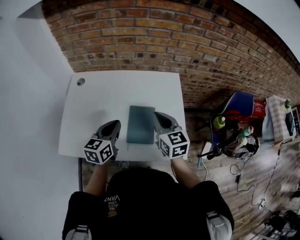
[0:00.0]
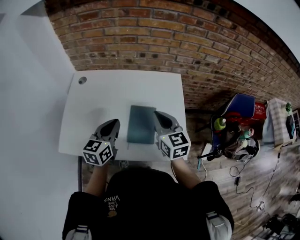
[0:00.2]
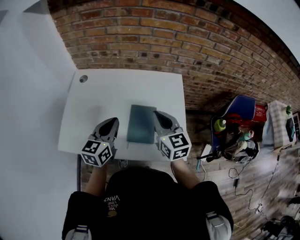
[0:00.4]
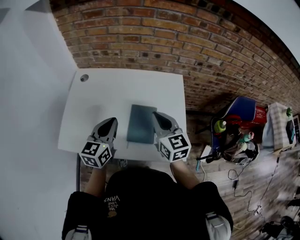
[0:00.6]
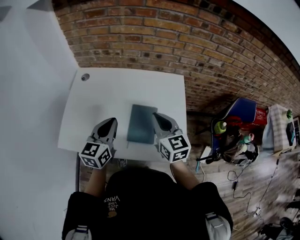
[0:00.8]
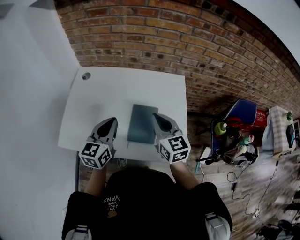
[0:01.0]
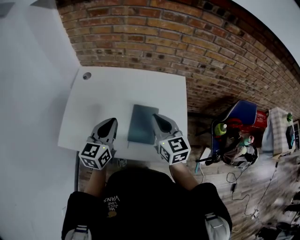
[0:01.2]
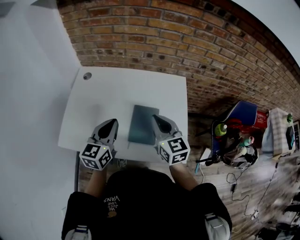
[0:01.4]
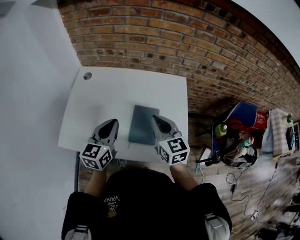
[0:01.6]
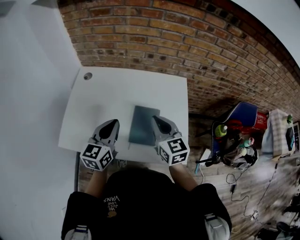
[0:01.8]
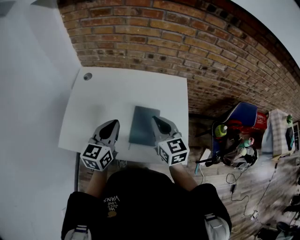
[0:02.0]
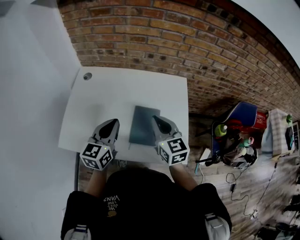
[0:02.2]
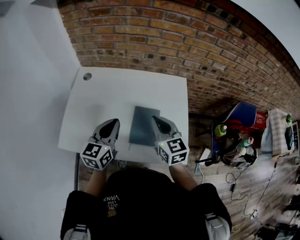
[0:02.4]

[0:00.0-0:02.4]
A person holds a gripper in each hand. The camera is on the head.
0:00.0 to 0:01.2: The left gripper shifts by some 5 cm.
0:01.2 to 0:02.4: The grippers stay close to where they were, moving slightly.

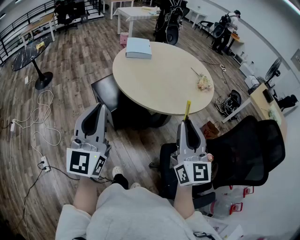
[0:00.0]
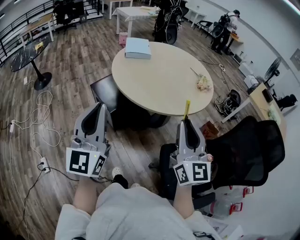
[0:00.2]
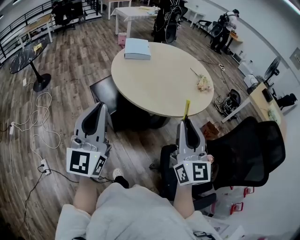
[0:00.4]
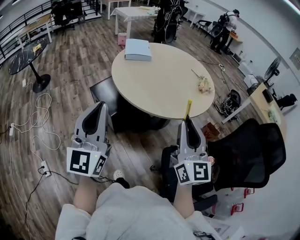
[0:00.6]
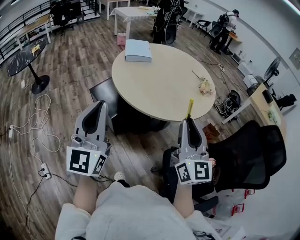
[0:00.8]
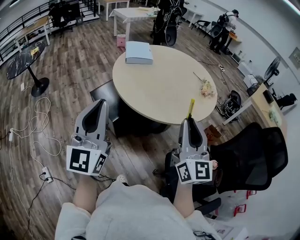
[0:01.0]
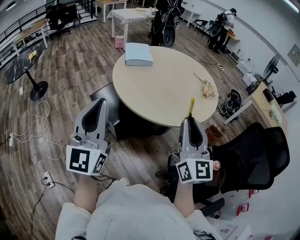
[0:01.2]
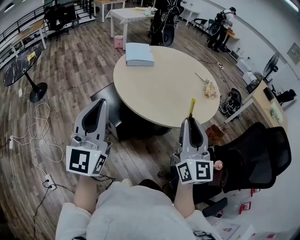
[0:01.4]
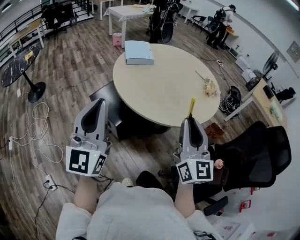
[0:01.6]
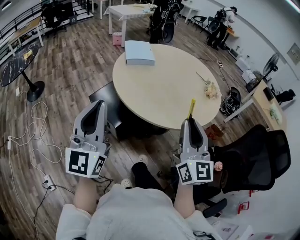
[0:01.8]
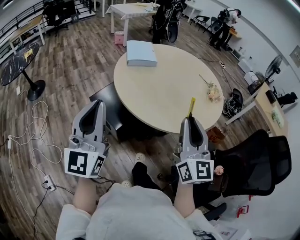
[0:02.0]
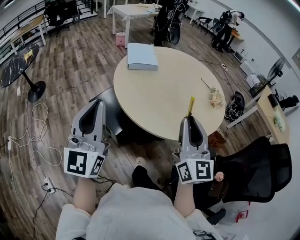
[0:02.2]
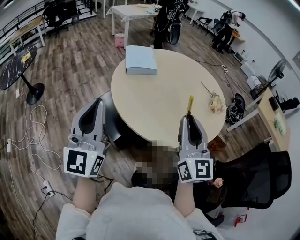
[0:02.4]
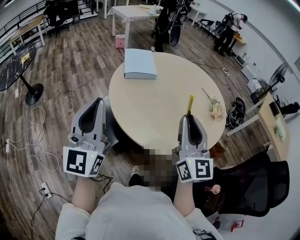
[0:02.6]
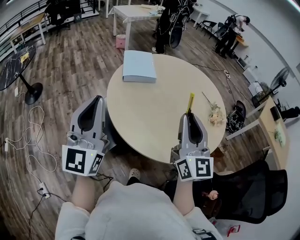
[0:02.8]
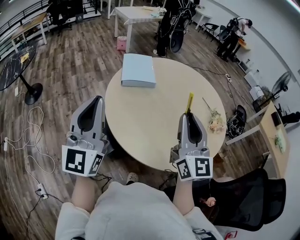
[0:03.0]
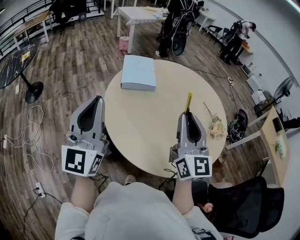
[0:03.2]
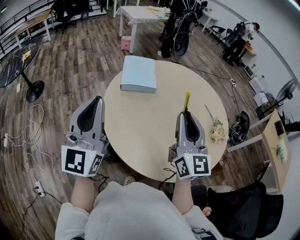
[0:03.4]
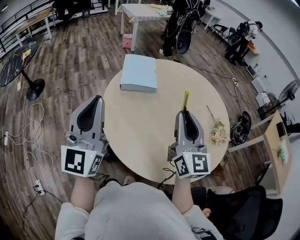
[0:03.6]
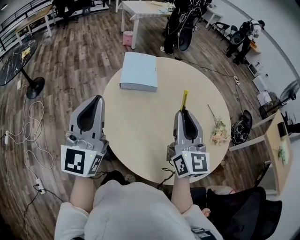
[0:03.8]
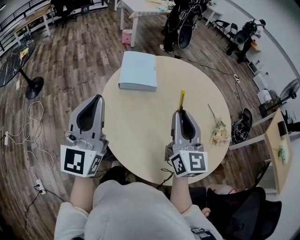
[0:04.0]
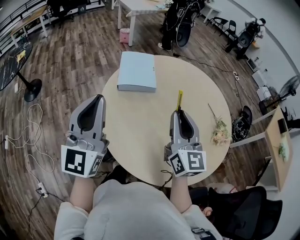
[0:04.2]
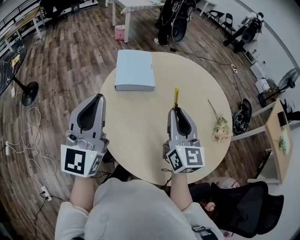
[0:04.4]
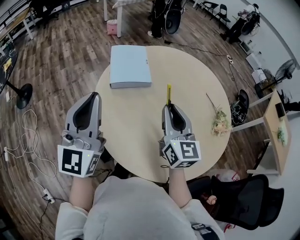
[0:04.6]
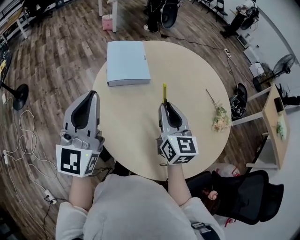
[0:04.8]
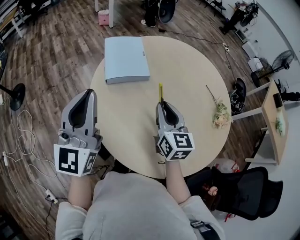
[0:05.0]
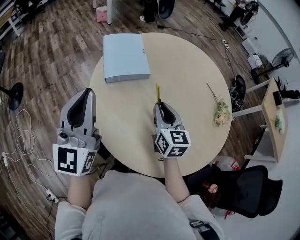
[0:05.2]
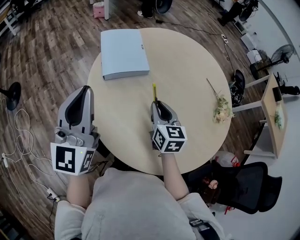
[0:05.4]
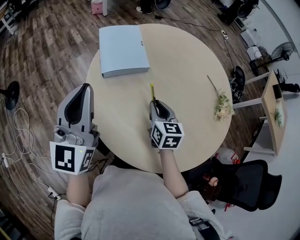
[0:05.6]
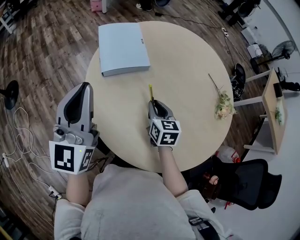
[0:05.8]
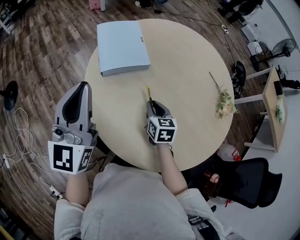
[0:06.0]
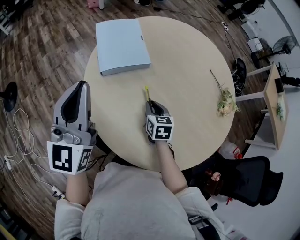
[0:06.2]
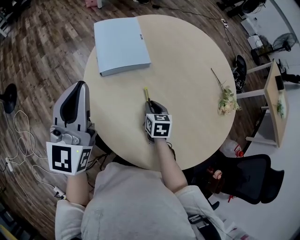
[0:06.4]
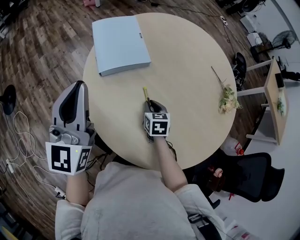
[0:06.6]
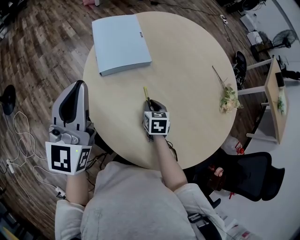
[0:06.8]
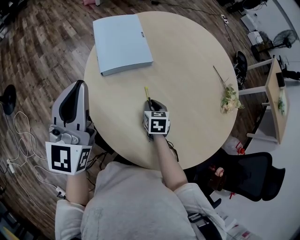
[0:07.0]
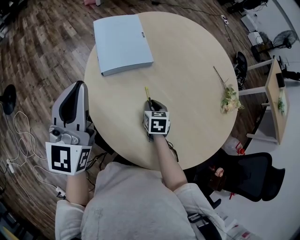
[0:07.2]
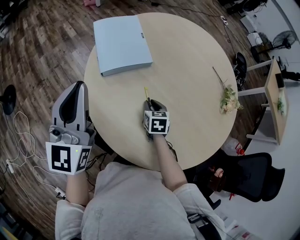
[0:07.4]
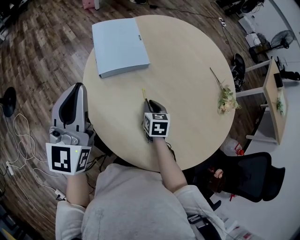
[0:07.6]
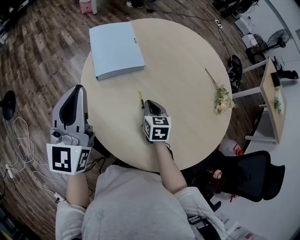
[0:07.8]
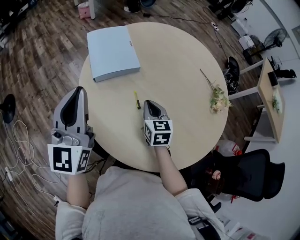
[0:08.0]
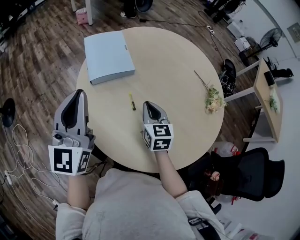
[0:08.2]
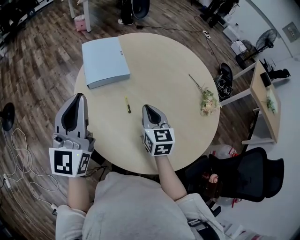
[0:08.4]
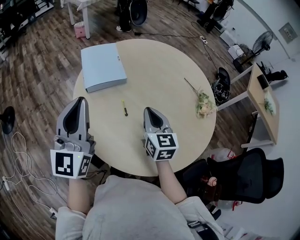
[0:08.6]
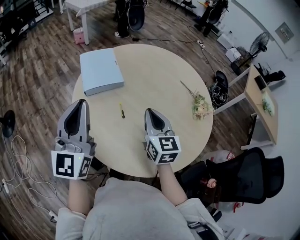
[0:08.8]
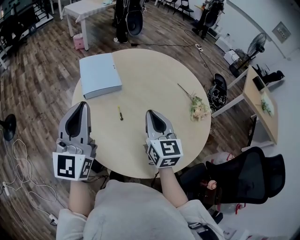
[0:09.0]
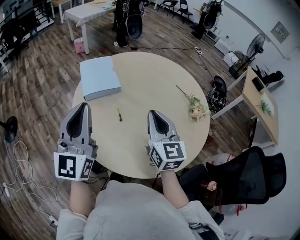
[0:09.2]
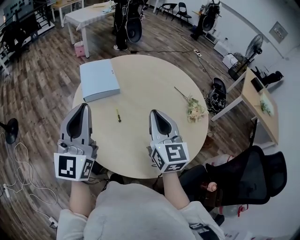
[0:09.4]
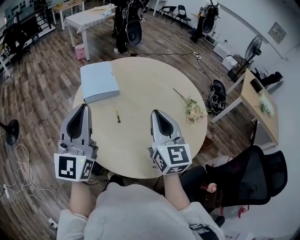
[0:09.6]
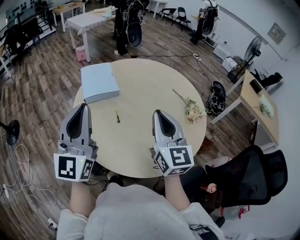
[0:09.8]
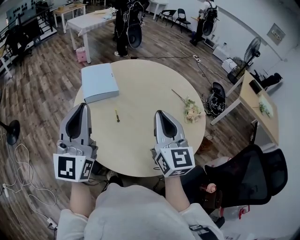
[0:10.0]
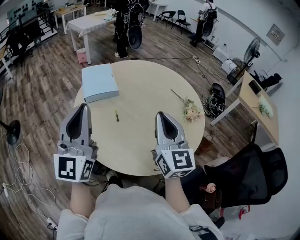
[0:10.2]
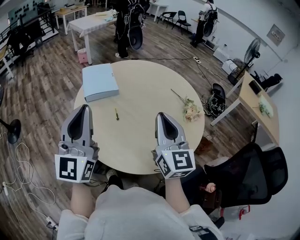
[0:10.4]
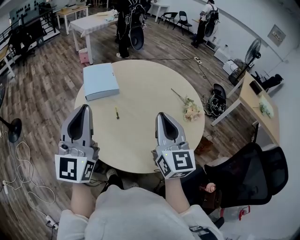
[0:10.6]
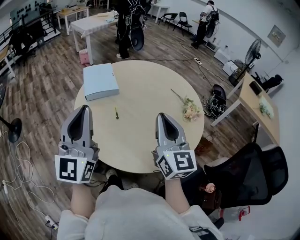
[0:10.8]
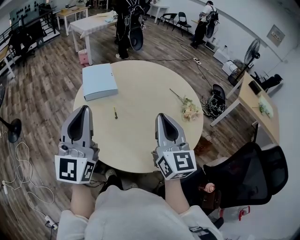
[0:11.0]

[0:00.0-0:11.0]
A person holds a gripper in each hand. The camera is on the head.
0:00.0 to 0:01.6: Both grippers move forward and to the left, roughly 15 cm.
0:01.6 to 0:03.2: Both grippers travel together forward, about 30 cm.
0:03.2 to 0:04.8: The left gripper is displaced forward by approximately 15 cm; the right gripper travels forward and downward by approximately 20 cm, and changes its angle by roughly 20 degrees.
0:04.8 to 0:06.2: The right gripper travels downward by about 25 cm, and tips its fingers downward by about 30 degrees, while the left gripper moves forward and downward, about 10 cm.
0:06.2 to 0:07.8: The grippers move only a little.
0:07.8 to 0:09.4: The right gripper goes about 35 cm upward, backward and to the right, and tips its fingers upward by some 40 degrees. The left gripper moves backward, to the right and upward, approximately 20 cm.
0:09.4 to 0:11.0: The left gripper heads backward, covering roughly 10 cm. Meanwhile the right gripper moves backward and to the right, approximately 10 cm.

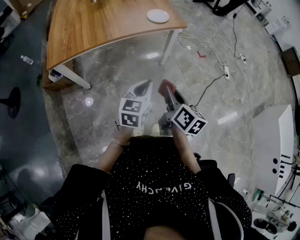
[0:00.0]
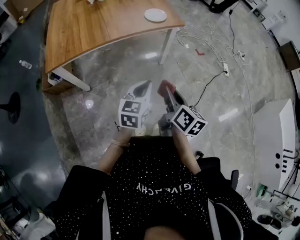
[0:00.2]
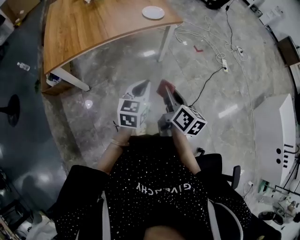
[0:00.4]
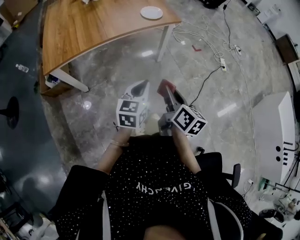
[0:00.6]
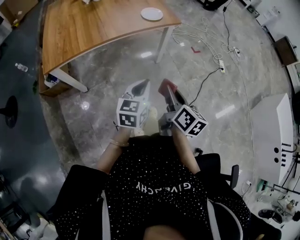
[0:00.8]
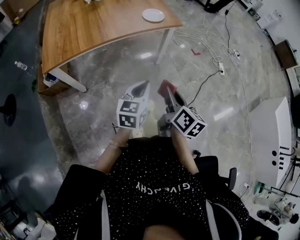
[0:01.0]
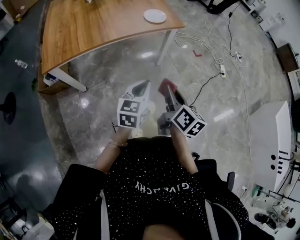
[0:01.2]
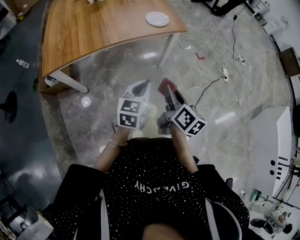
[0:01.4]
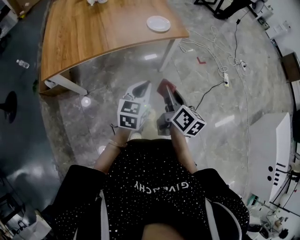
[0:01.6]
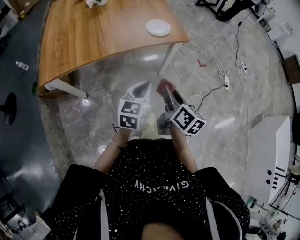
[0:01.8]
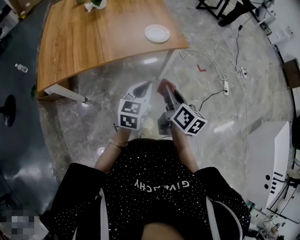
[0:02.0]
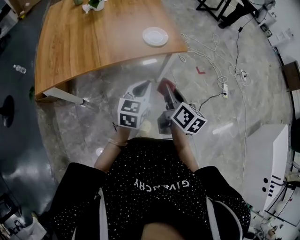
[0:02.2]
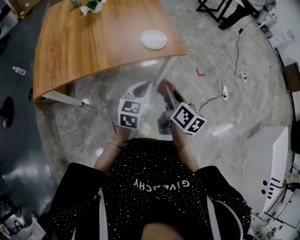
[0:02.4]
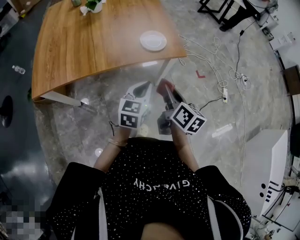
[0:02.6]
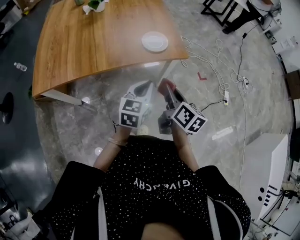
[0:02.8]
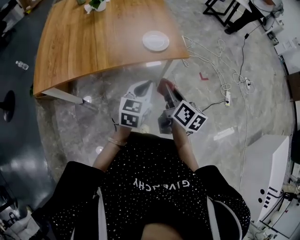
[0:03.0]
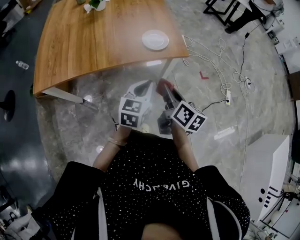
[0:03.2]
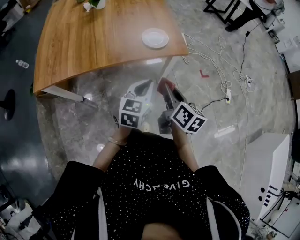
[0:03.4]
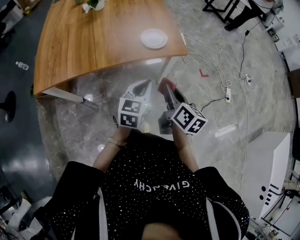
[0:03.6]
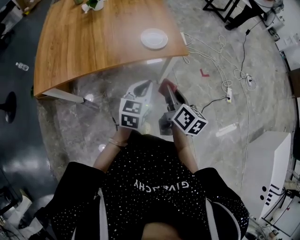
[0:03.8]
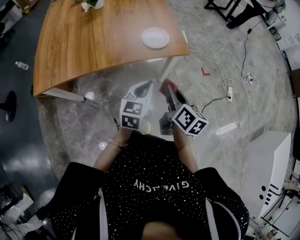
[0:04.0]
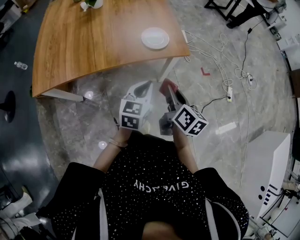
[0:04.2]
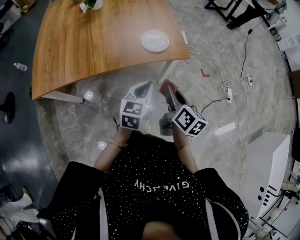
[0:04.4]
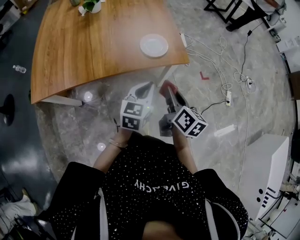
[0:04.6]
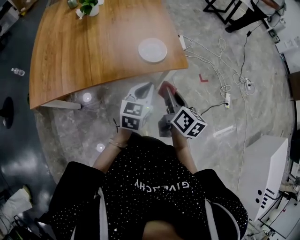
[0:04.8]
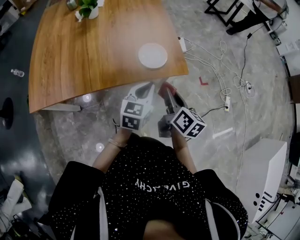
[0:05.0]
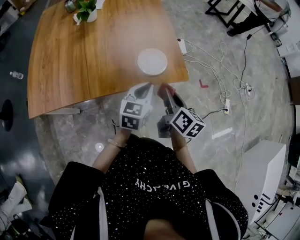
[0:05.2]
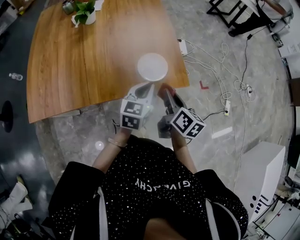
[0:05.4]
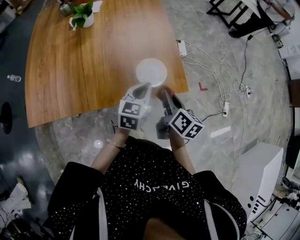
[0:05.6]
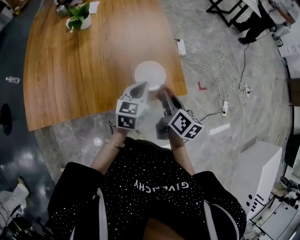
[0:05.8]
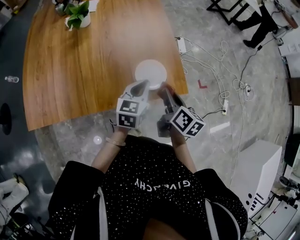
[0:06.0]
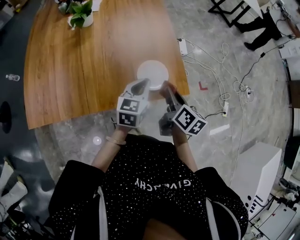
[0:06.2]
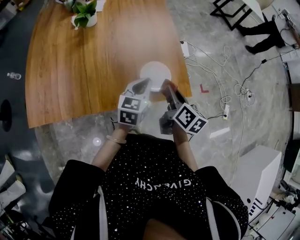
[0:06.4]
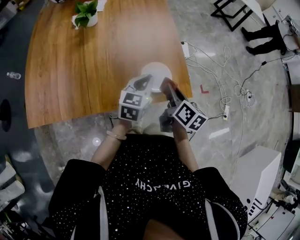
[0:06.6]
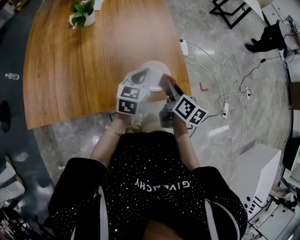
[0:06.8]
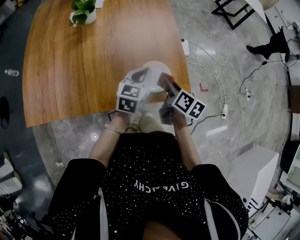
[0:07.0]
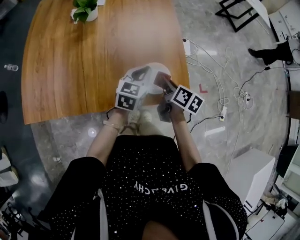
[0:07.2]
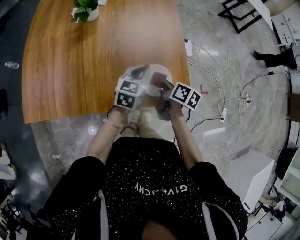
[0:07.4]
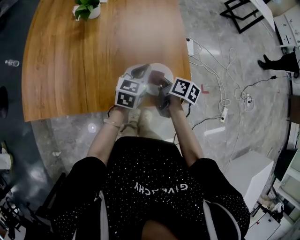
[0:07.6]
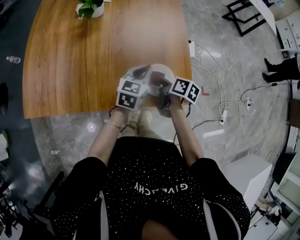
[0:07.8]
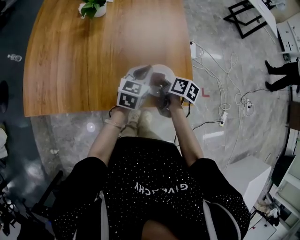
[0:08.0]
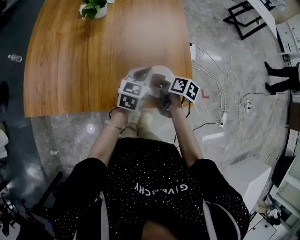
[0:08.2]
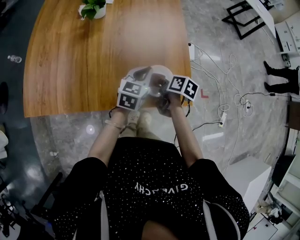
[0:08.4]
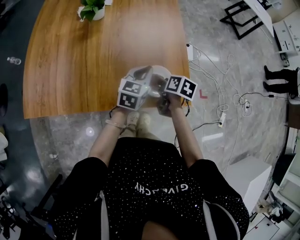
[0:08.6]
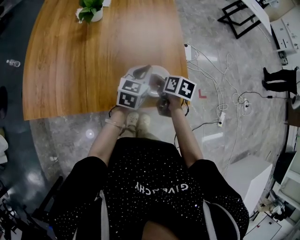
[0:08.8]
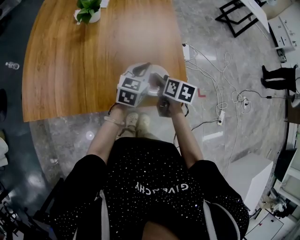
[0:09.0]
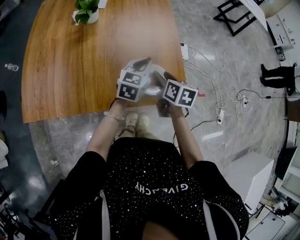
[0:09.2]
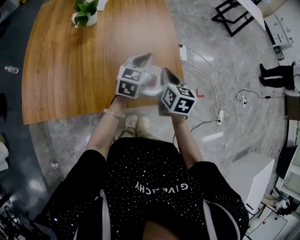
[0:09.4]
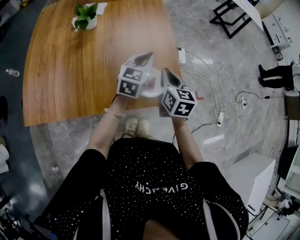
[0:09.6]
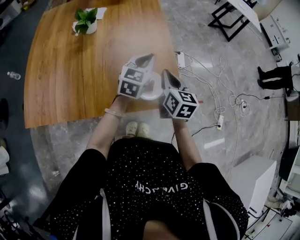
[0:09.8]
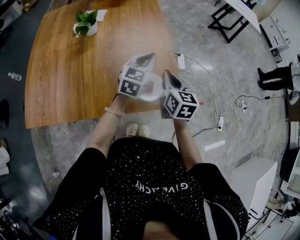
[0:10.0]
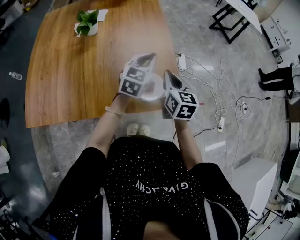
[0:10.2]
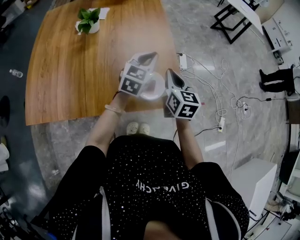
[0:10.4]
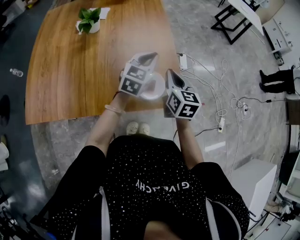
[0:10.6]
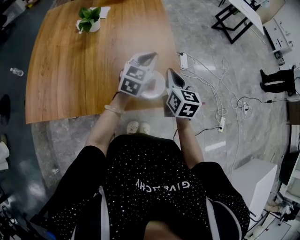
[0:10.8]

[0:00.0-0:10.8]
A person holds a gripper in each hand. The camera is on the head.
0:00.0 to 0:01.6: Both grippers move forward, about 10 cm.
0:01.6 to 0:03.0: The two grippers go some 15 cm forward.
0:03.0 to 0:04.6: Both grippers travel together forward, approximately 5 cm.
0:04.6 to 0:06.2: Both grippers travel together forward, roughly 20 cm.
0:06.2 to 0:07.8: The left gripper shifts some 10 cm forward, while the right gripper moves forward, downward and to the left, some 15 cm, and changes its angle by roughly 30 degrees.
0:07.8 to 0:09.2: The right gripper is displaced upward by about 5 cm, turns by some 30 degrees, and opens up.
0:09.2 to 0:10.8: Both grippers move upward, about 10 cm. The right gripper swivels some 30 degrees, and closes.
